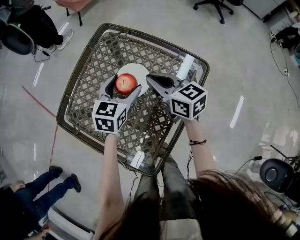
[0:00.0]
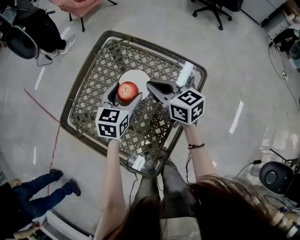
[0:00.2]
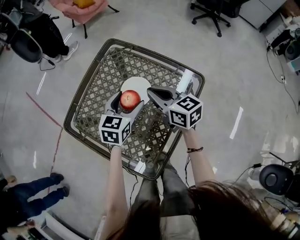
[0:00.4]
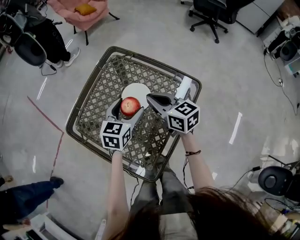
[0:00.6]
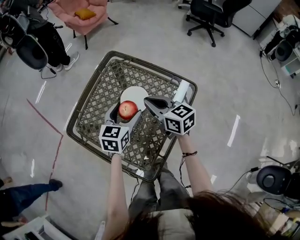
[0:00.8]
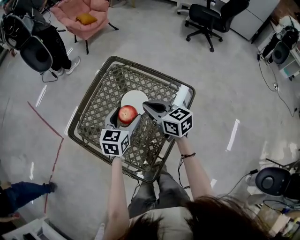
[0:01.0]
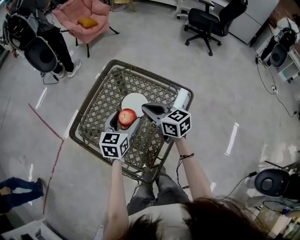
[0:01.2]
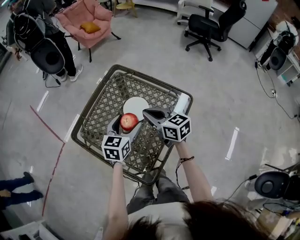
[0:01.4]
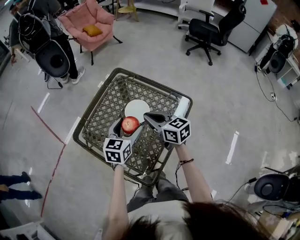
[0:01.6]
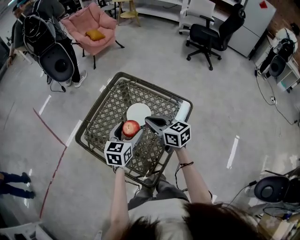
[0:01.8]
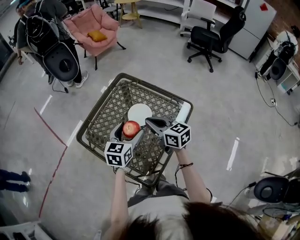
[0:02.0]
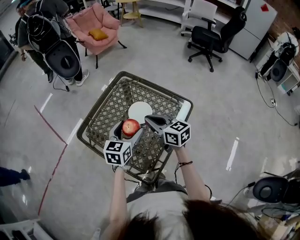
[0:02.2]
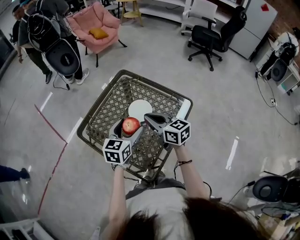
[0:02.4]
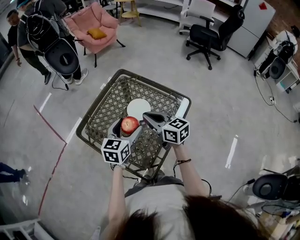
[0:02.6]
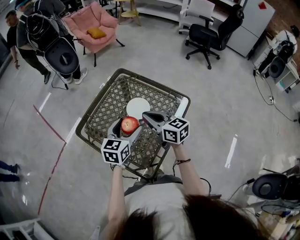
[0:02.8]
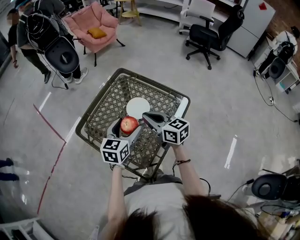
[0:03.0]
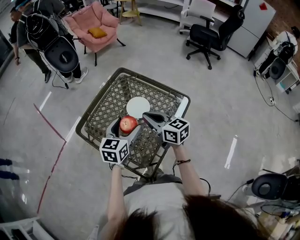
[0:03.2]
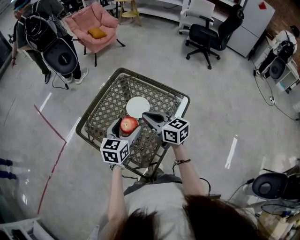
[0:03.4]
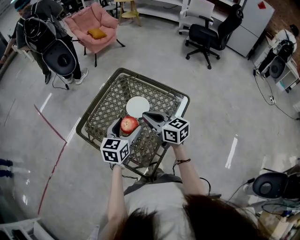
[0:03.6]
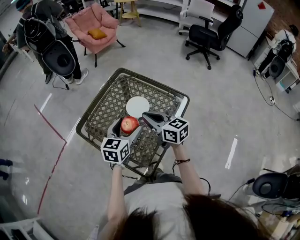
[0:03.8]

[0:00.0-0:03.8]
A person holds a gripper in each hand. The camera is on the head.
0.0 to 1.2 s: The left gripper shifts about 10 cm upward and backward; the right gripper is displaced upward by about 5 cm.
1.2 to 2.6 s: The right gripper heads backward, covering some 5 cm. The left gripper heads backward and upward, covering roughly 10 cm.
2.6 to 3.8 s: The grippers make only small movements.

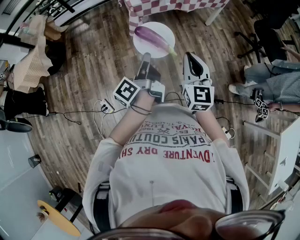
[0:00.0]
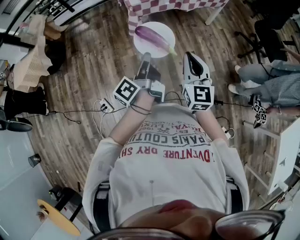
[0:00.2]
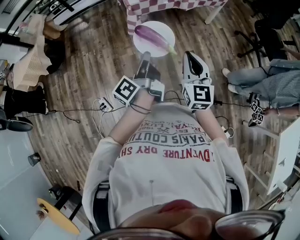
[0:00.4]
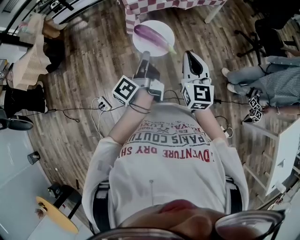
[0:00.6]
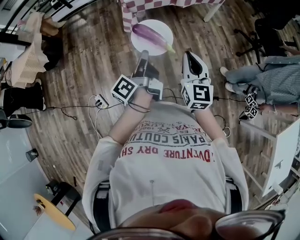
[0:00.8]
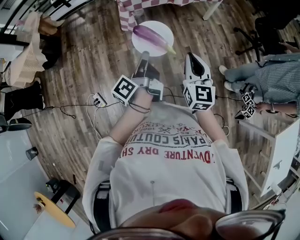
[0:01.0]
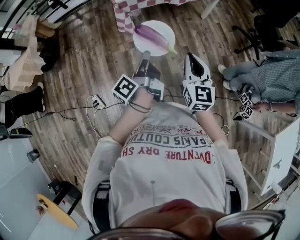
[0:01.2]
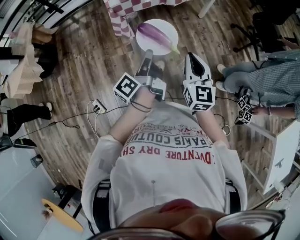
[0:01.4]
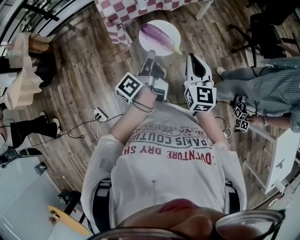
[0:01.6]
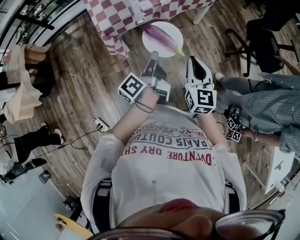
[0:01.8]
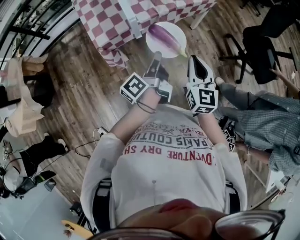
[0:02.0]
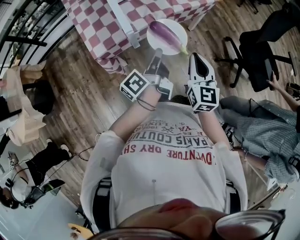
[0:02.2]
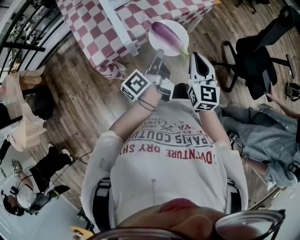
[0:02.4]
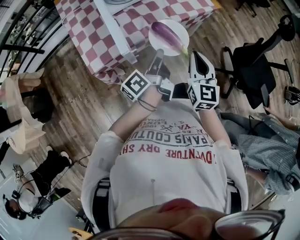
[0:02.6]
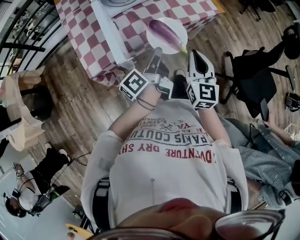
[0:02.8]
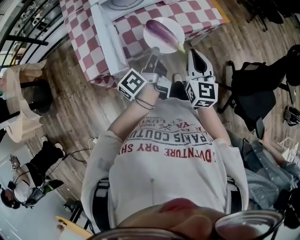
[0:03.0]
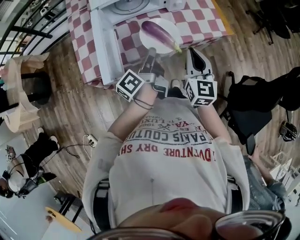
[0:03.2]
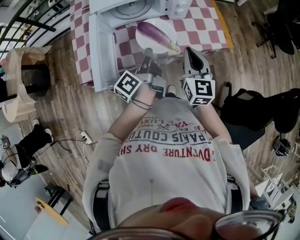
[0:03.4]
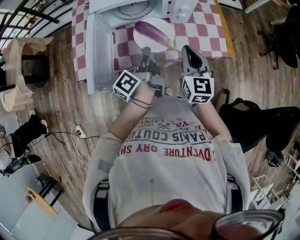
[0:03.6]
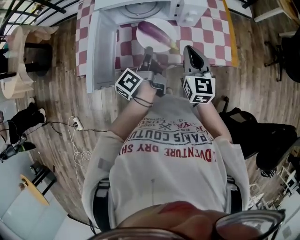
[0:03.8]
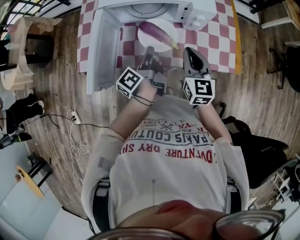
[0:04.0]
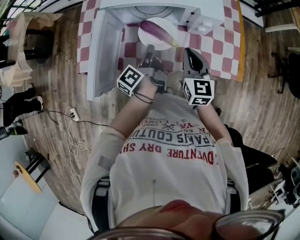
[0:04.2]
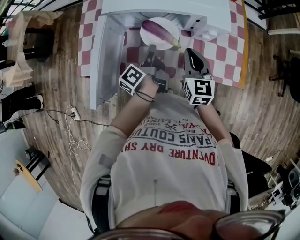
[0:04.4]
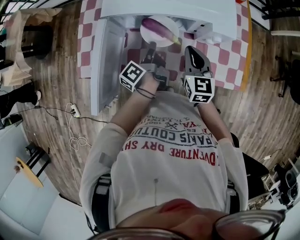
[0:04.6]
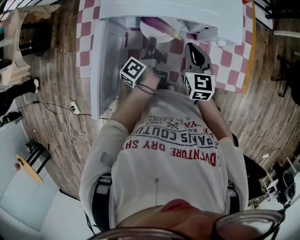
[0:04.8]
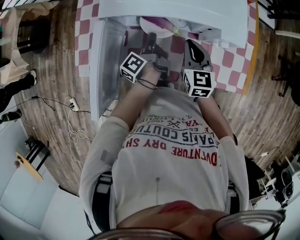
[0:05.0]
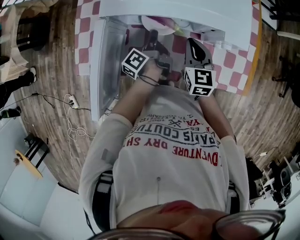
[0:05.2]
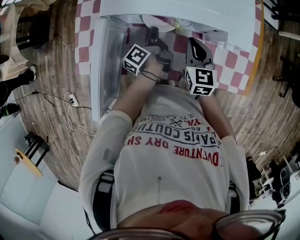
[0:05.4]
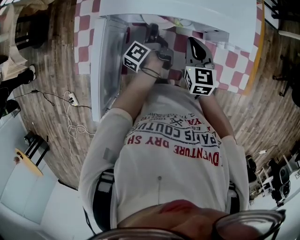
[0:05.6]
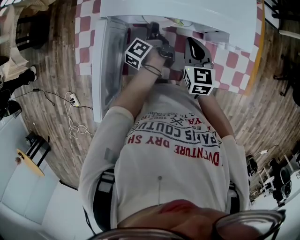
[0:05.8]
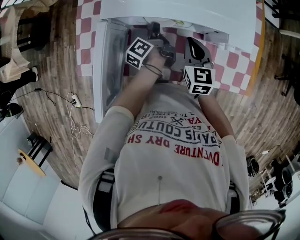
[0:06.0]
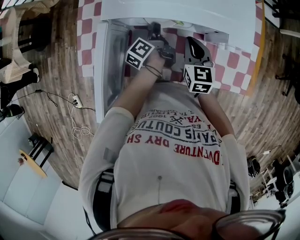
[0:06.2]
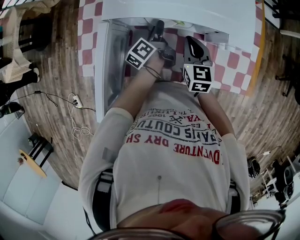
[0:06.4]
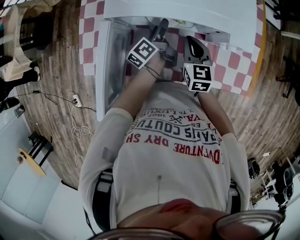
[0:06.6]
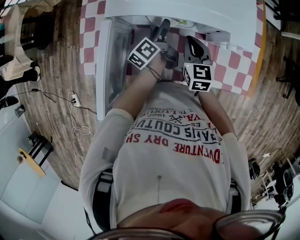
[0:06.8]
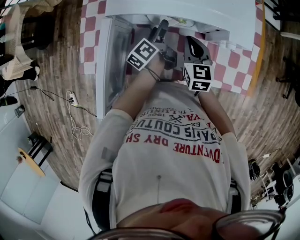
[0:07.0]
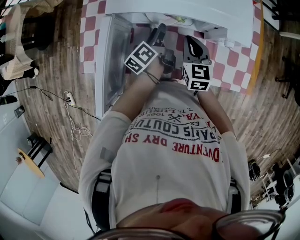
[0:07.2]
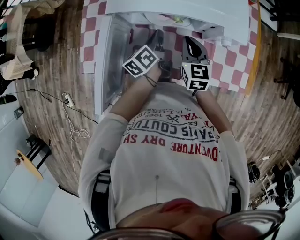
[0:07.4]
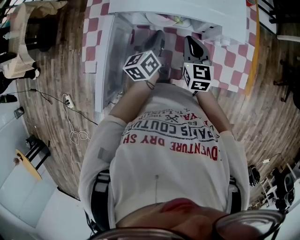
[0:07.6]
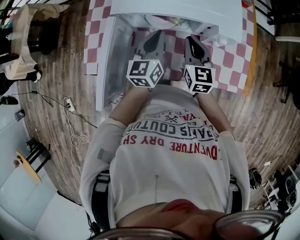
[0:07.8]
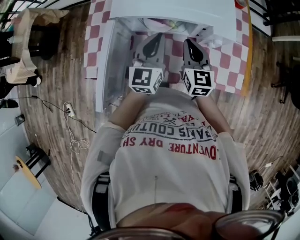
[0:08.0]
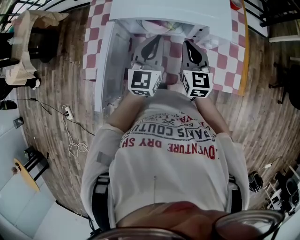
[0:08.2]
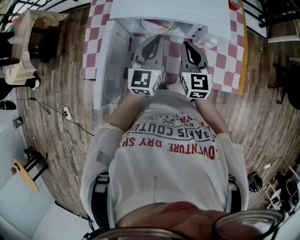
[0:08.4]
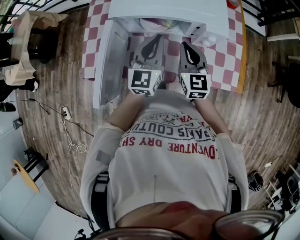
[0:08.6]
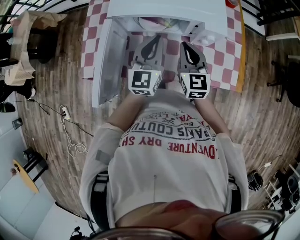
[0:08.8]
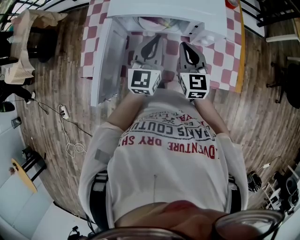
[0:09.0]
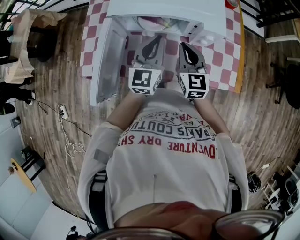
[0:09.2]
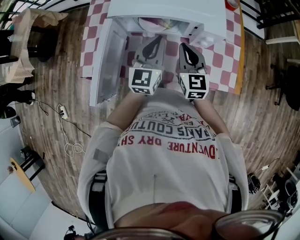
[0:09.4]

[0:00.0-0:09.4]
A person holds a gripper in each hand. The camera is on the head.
0.0 to 1.6 s: The left gripper travels to the right and forward by roughly 20 cm. Meanwhile the right gripper heads to the right, forward and downward, covering about 20 cm.
1.6 to 3.2 s: The pair of grippers is taken forward, roughly 50 cm.
3.2 to 4.8 s: The left gripper ends up roughly 25 cm from where it was, and turns by some 30 degrees; the right gripper moves roughly 30 cm, and turns by approximately 30 degrees.
4.8 to 6.2 s: The left gripper travels forward and downward by roughly 10 cm. The right gripper shifts by roughly 5 cm.
6.2 to 7.8 s: The left gripper shifts about 15 cm upward and backward, rotates around the line of its fingers by approximately 60 degrees, clockwise from behind, and opens and closes again. Meanwhile the right gripper is displaced upward by about 5 cm.
7.8 to 9.4 s: The right gripper changes place by approximately 5 cm, while the left gripper travels upward by about 5 cm.

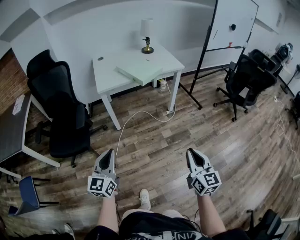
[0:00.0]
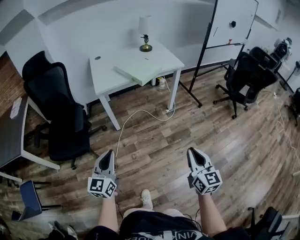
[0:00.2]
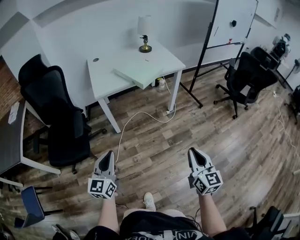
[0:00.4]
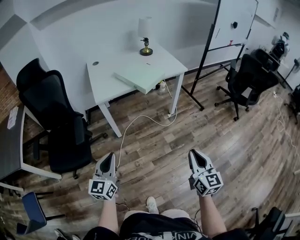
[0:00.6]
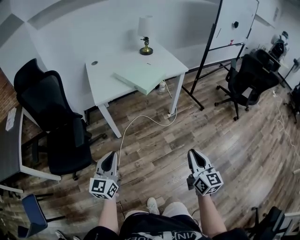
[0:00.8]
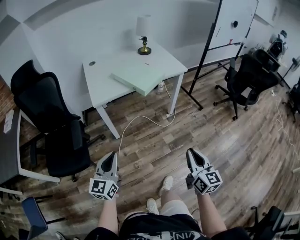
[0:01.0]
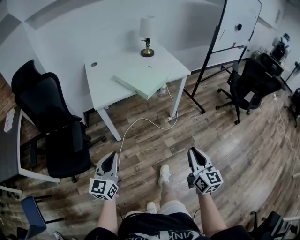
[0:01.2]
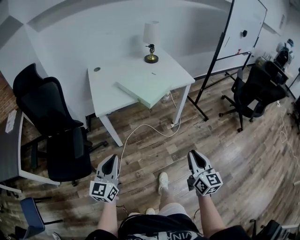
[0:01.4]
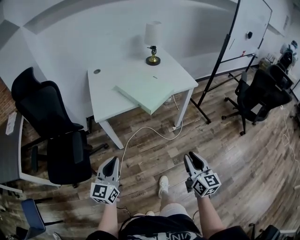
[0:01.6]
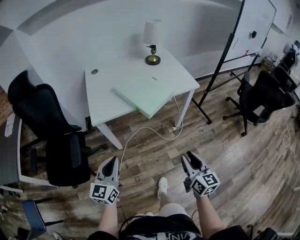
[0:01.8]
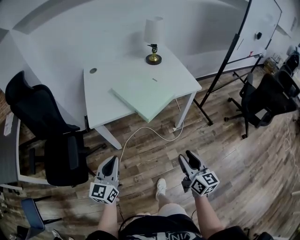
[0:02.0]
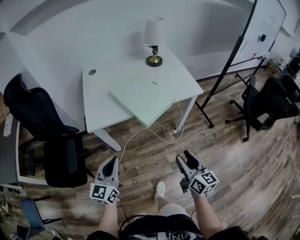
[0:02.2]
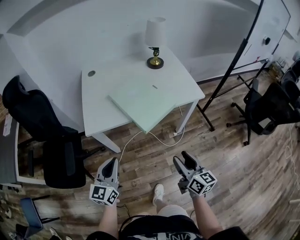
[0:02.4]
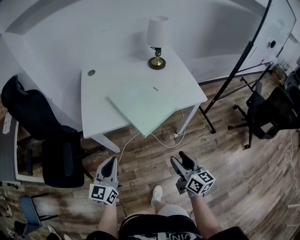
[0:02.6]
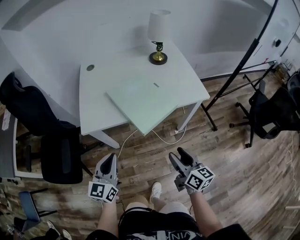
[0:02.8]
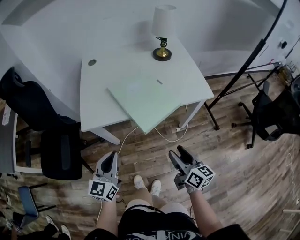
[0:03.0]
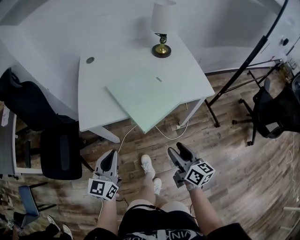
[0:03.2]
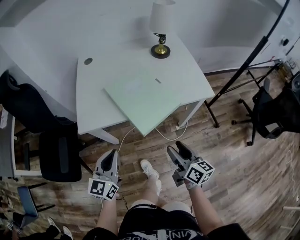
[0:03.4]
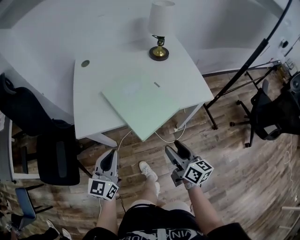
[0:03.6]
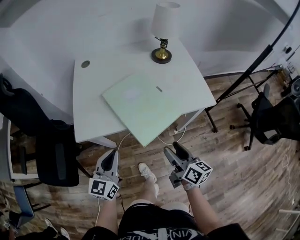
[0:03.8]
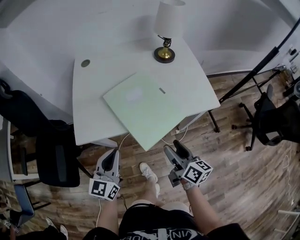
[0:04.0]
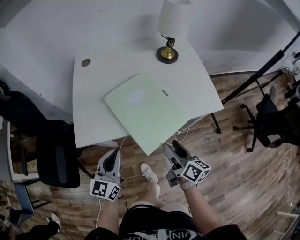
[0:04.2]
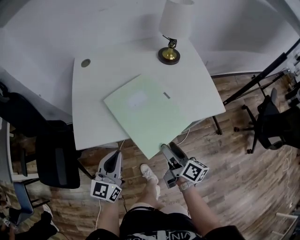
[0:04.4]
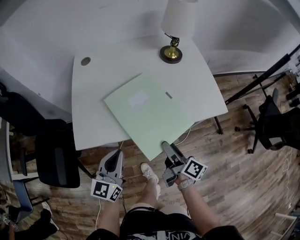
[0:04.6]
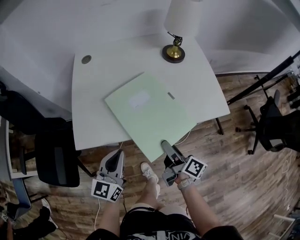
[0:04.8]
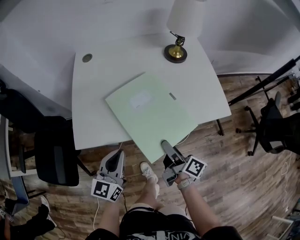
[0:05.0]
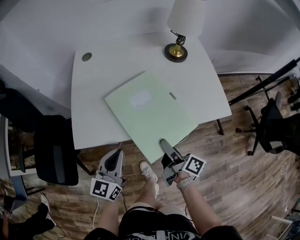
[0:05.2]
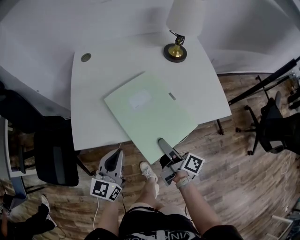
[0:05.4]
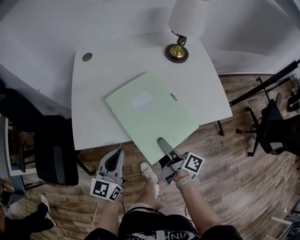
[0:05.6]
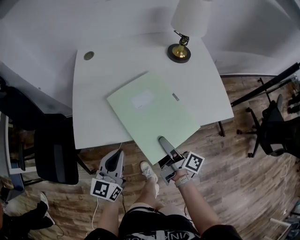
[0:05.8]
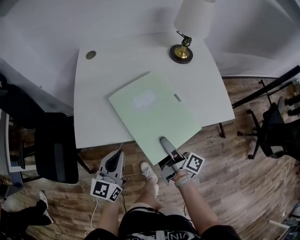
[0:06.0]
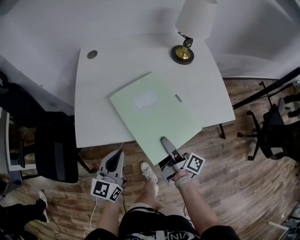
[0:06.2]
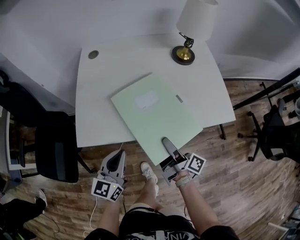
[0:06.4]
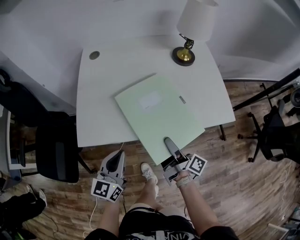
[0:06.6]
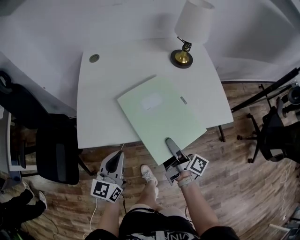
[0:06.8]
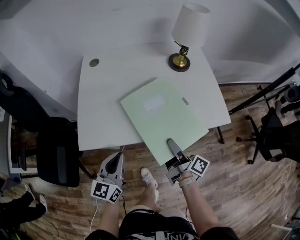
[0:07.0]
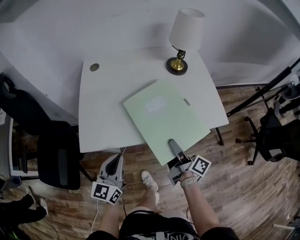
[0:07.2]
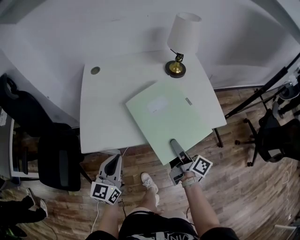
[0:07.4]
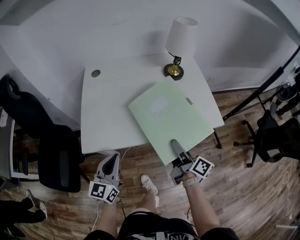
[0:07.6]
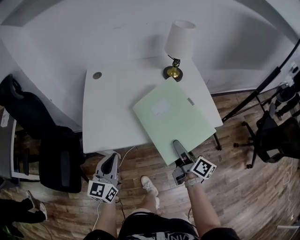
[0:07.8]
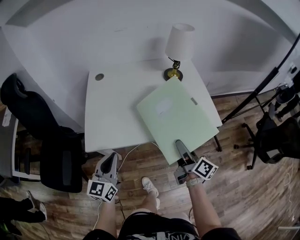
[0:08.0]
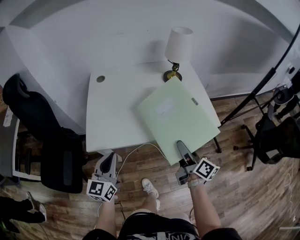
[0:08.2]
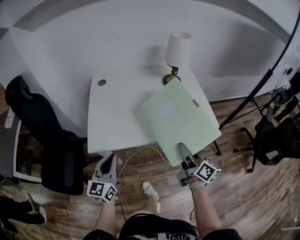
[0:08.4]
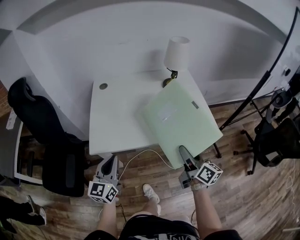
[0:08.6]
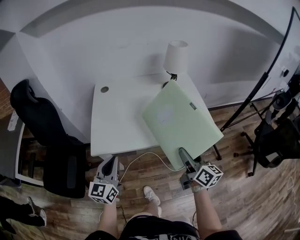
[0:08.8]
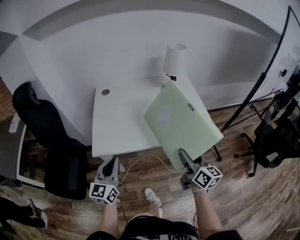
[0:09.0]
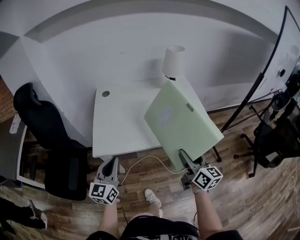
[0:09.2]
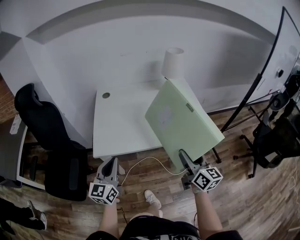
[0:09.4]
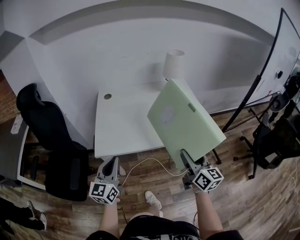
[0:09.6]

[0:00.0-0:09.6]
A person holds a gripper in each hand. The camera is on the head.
0.0 to 1.6 s: Both grippers travel together forward, some 30 cm.
1.6 to 3.2 s: The right gripper heads forward, covering roughly 25 cm, turns by about 30 degrees, and opens. The left gripper travels forward and to the right by roughly 20 cm.
3.2 to 4.8 s: The two grippers go approximately 15 cm forward. The right gripper swivels some 30 degrees.
4.8 to 6.4 s: There are only small adjustments of the grippers.
6.4 to 8.0 s: The left gripper is displaced upward by roughly 5 cm. Meanwhile the right gripper is displaced upward and to the right by approximately 15 cm, and changes its angle by roughly 30 degrees.
8.0 to 9.6 s: The right gripper goes some 10 cm backward and upward, and turns by about 30 degrees. The left gripper travels upward and backward by approximately 10 cm.

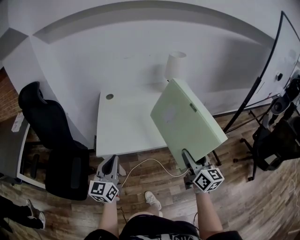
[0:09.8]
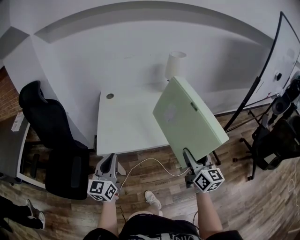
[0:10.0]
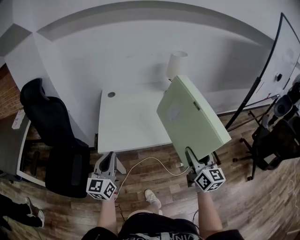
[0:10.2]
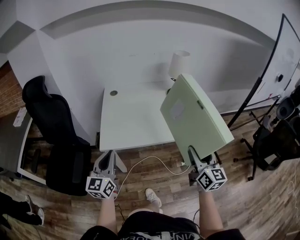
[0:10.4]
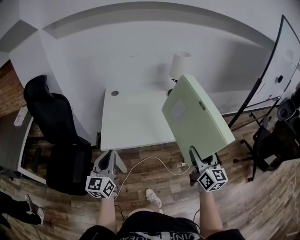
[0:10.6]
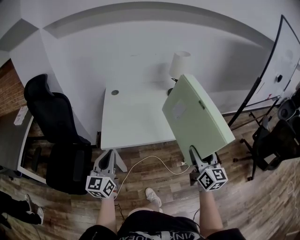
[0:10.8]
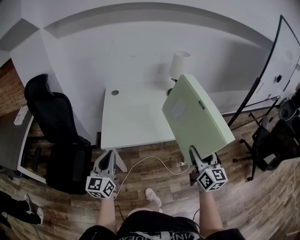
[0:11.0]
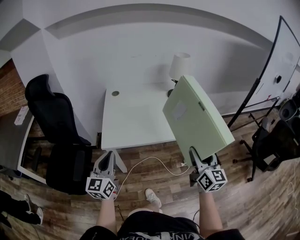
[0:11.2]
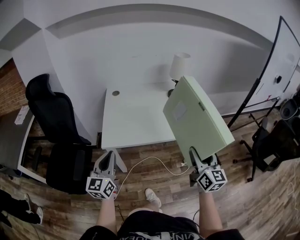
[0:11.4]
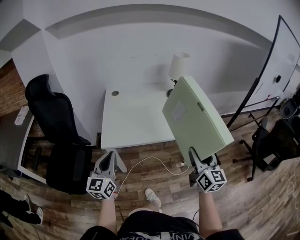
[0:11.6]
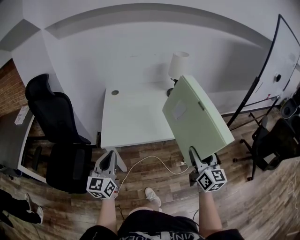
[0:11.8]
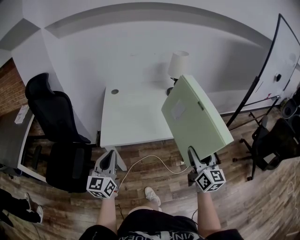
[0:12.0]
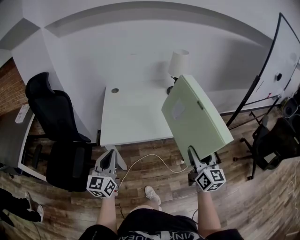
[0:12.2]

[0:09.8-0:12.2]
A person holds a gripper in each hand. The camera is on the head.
9.8 to 11.0 s: The left gripper shifts by about 5 cm.
11.0 to 12.2 s: The grippers stay close to where they were, moving slightly.
